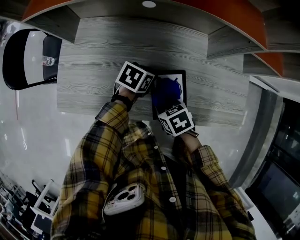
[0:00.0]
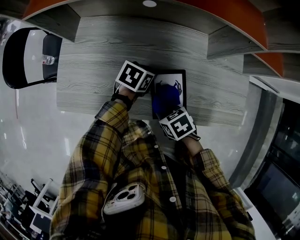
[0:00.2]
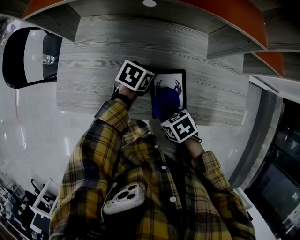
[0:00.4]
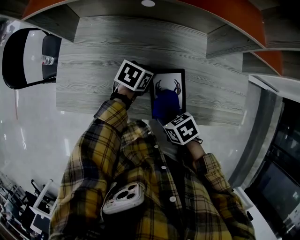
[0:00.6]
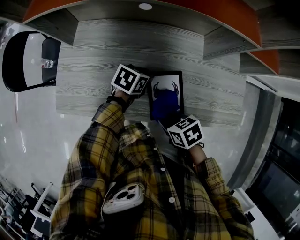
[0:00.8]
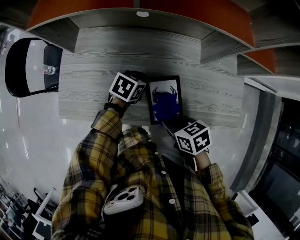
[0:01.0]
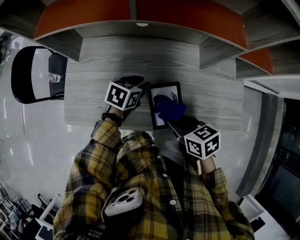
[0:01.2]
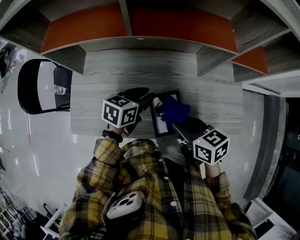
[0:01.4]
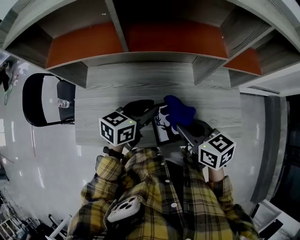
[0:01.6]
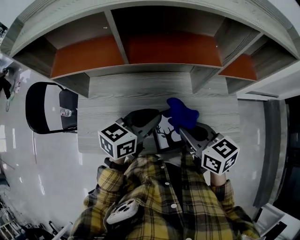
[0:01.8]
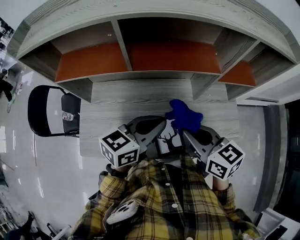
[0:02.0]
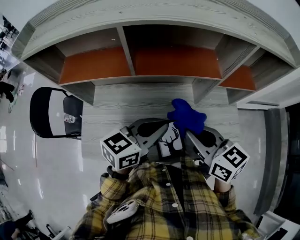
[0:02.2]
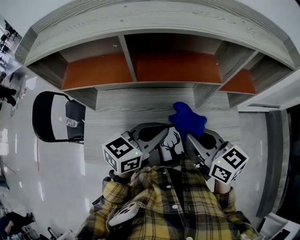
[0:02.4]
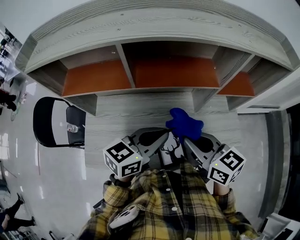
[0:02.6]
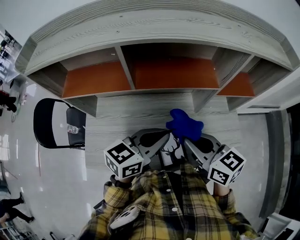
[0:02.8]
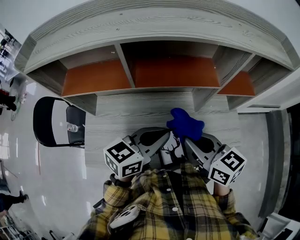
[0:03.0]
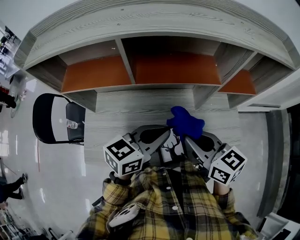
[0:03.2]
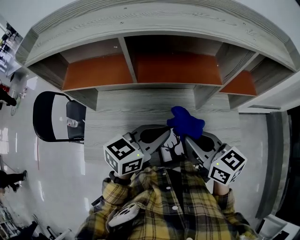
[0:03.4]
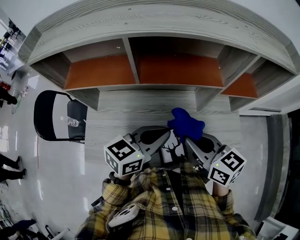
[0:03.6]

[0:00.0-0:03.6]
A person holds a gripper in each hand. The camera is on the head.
0:00.0 to 0:01.8: Both grippers move upward, some 25 cm. The right gripper tips its fingers upward by some 40 degrees. The left gripper tips its fingers upward by roughly 30 degrees.
0:01.8 to 0:03.6: Both grippers travel together upward, approximately 5 cm.

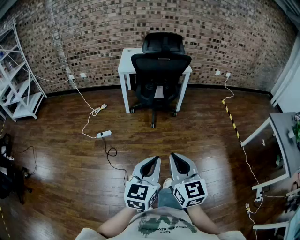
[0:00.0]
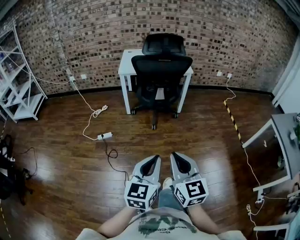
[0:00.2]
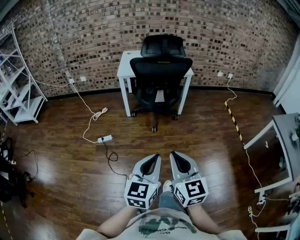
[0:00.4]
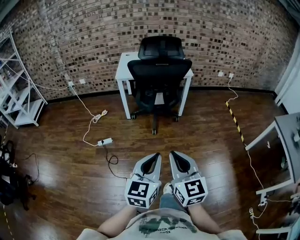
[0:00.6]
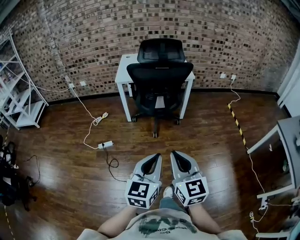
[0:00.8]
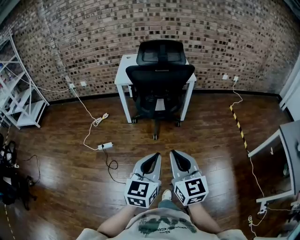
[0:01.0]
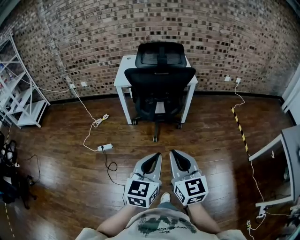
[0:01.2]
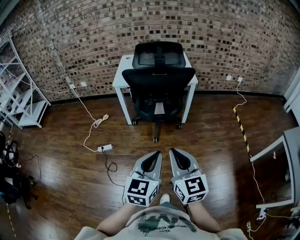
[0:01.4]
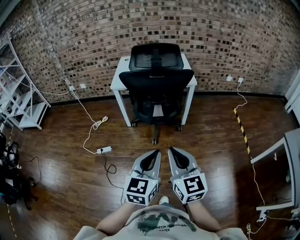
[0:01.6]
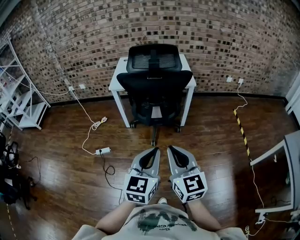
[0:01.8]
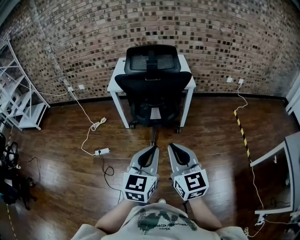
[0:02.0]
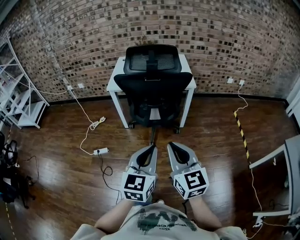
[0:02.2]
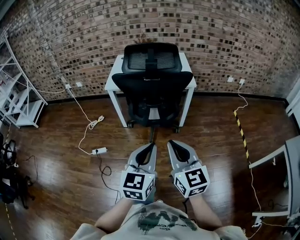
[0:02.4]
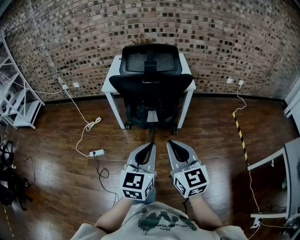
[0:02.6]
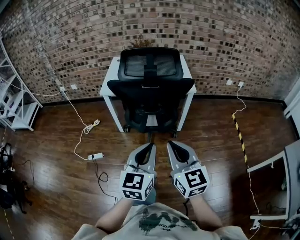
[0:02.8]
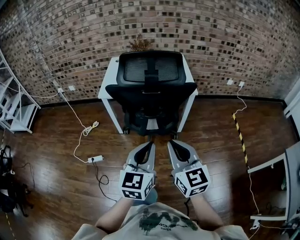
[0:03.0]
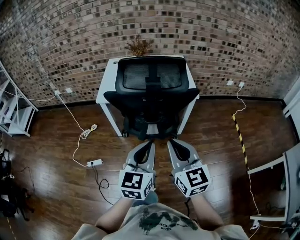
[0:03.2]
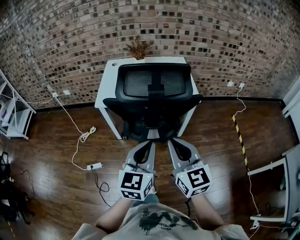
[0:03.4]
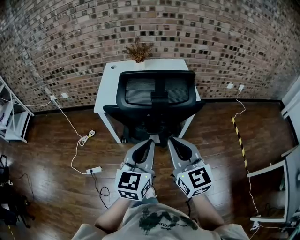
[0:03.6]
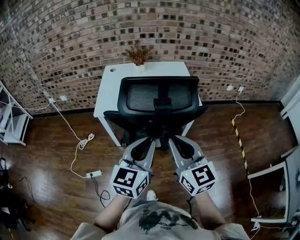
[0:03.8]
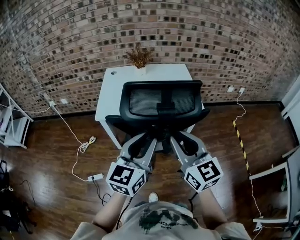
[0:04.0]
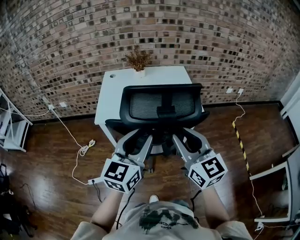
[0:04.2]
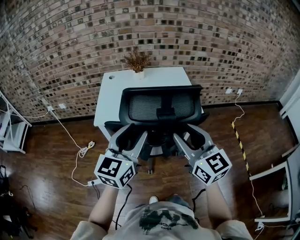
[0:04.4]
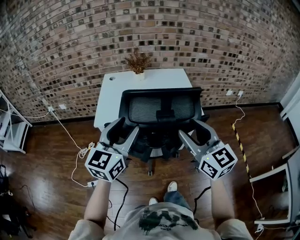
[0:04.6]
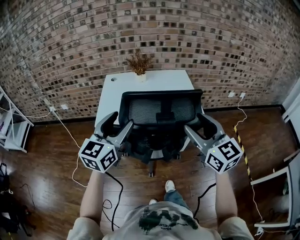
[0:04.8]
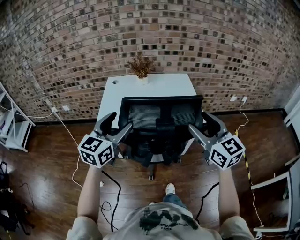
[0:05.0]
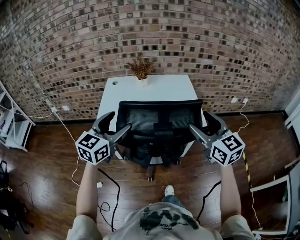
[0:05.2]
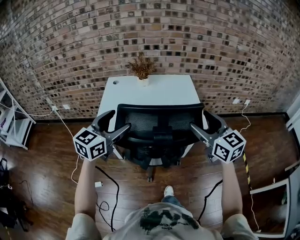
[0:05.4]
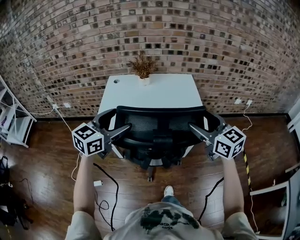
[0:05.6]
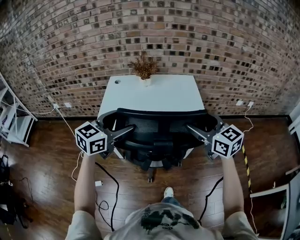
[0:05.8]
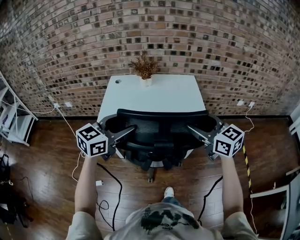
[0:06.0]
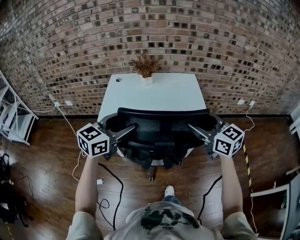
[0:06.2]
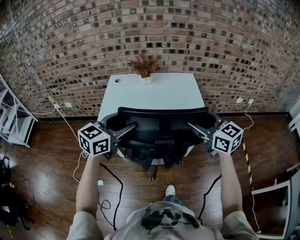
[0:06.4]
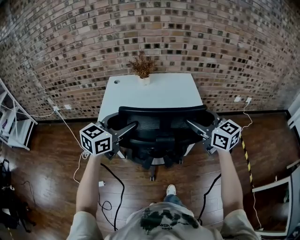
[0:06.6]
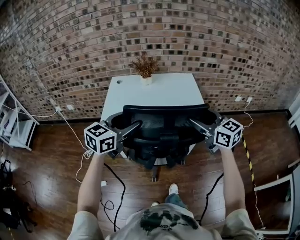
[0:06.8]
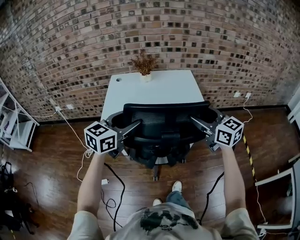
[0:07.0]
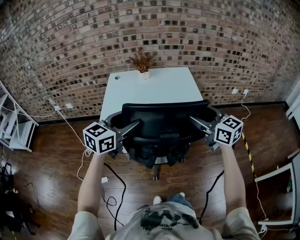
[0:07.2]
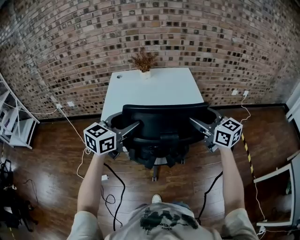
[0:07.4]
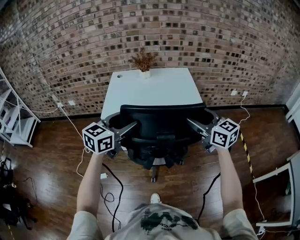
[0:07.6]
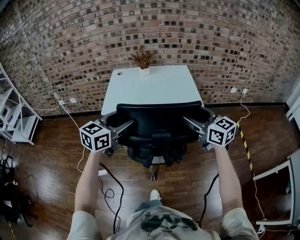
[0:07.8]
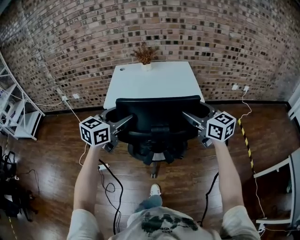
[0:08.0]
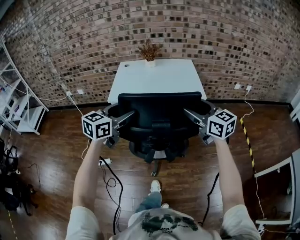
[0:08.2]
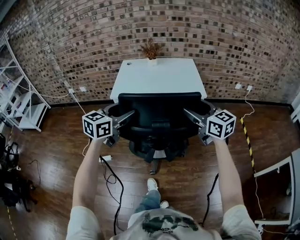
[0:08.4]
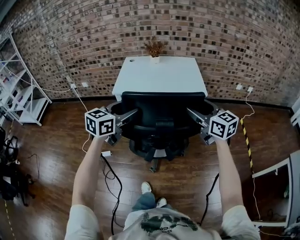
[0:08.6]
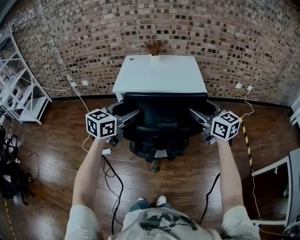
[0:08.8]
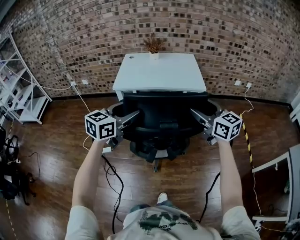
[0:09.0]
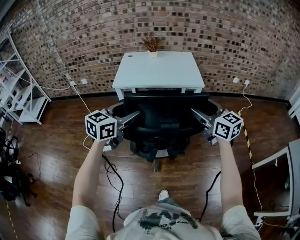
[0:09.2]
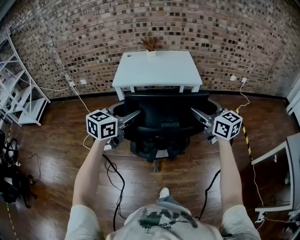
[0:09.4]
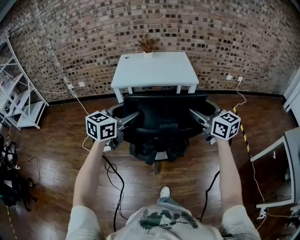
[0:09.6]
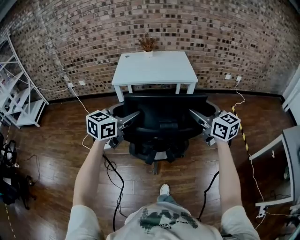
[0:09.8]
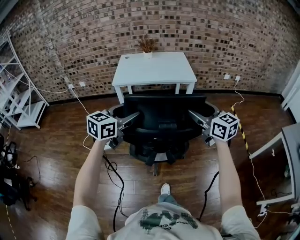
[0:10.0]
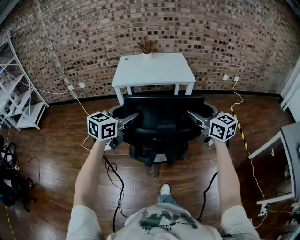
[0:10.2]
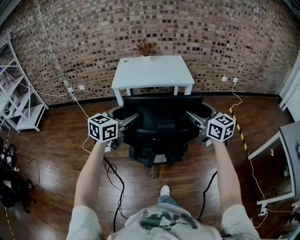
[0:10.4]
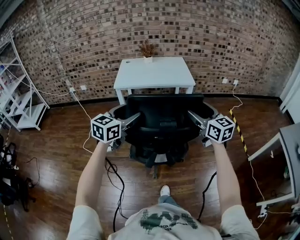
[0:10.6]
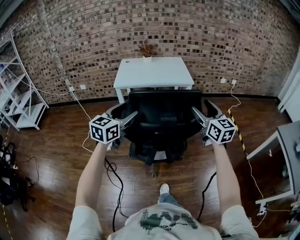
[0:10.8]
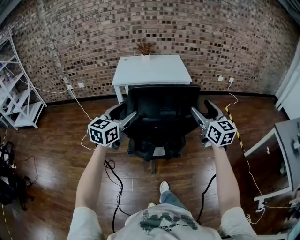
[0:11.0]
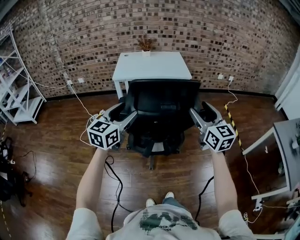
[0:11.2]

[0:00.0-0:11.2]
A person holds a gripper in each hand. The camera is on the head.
0:00.0 to 0:01.6: The grippers both shift forward by approximately 25 cm.
0:01.6 to 0:03.2: The grippers both shift forward by approximately 25 cm.
0:03.2 to 0:04.8: The right gripper goes some 20 cm forward, and opens, while the left gripper travels forward and to the left by some 25 cm, and opens its fingers.
0:04.8 to 0:06.4: The left gripper goes roughly 5 cm forward. The right gripper shifts some 10 cm forward.
0:06.4 to 0:08.0: Both grippers move backward, roughly 20 cm.
0:08.0 to 0:09.6: The two grippers go roughly 25 cm backward.
0:09.6 to 0:11.2: The two grippers go roughly 15 cm backward.

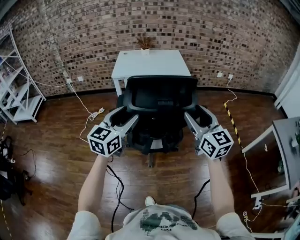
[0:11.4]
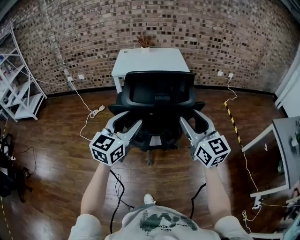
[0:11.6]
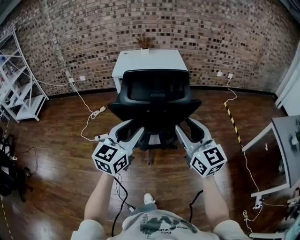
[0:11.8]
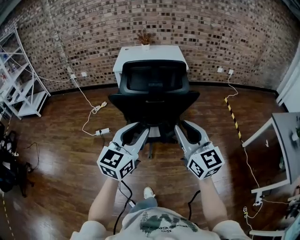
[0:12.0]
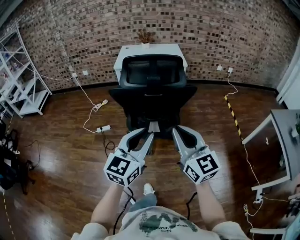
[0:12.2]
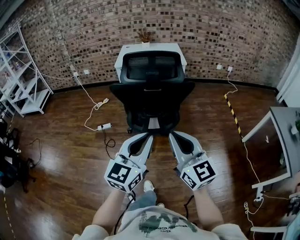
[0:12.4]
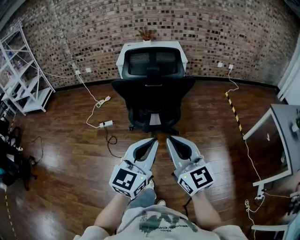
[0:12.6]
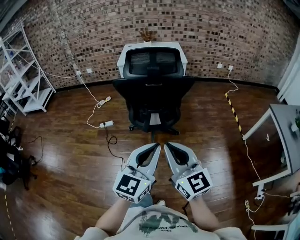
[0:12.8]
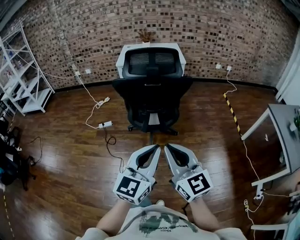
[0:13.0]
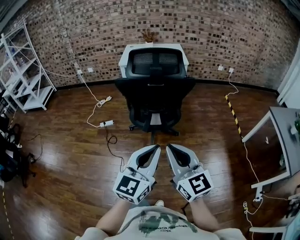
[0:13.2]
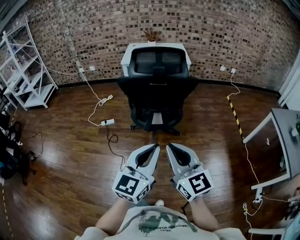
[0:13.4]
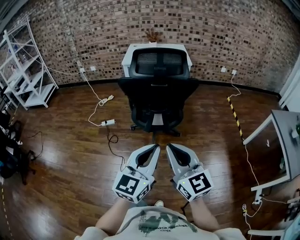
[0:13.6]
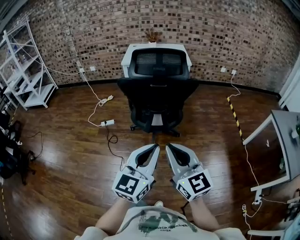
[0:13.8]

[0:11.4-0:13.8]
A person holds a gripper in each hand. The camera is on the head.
0:11.4 to 0:12.6: The left gripper goes approximately 35 cm backward and to the right, and closes up; the right gripper moves backward, roughly 30 cm, and closes its fingers.
0:12.6 to 0:13.8: The grippers stay close to where they were, moving slightly.

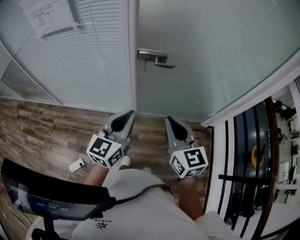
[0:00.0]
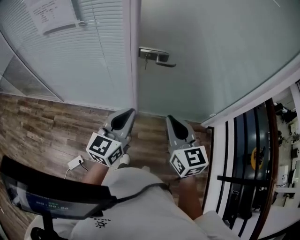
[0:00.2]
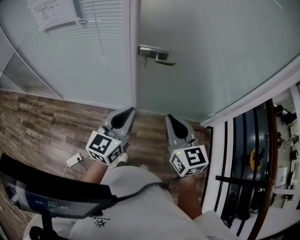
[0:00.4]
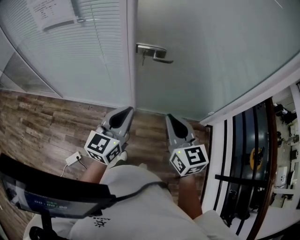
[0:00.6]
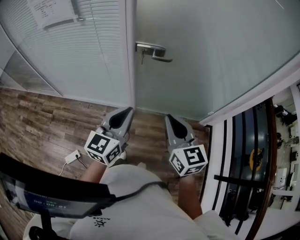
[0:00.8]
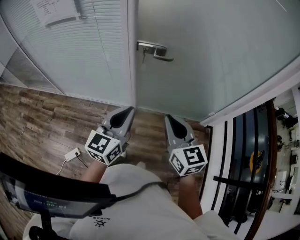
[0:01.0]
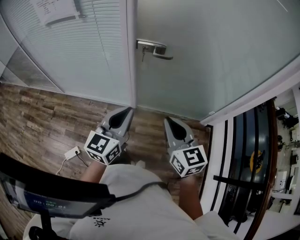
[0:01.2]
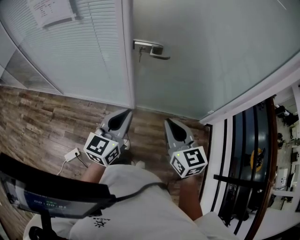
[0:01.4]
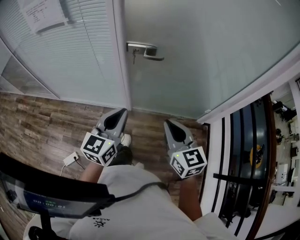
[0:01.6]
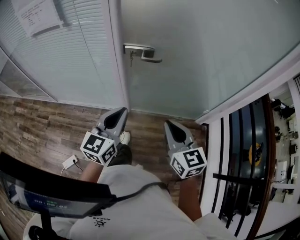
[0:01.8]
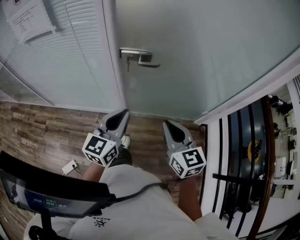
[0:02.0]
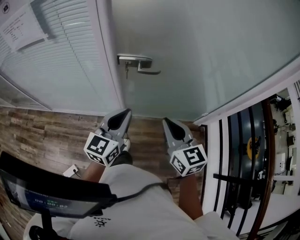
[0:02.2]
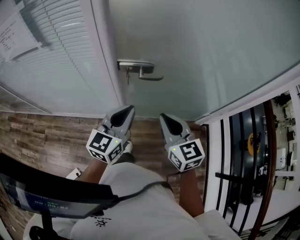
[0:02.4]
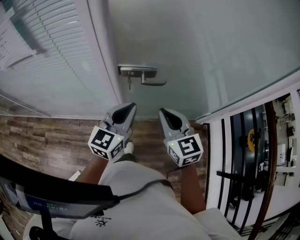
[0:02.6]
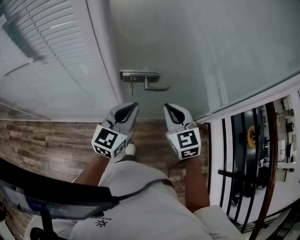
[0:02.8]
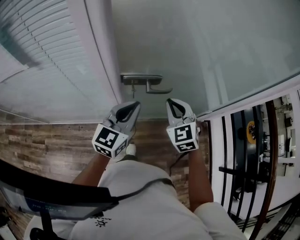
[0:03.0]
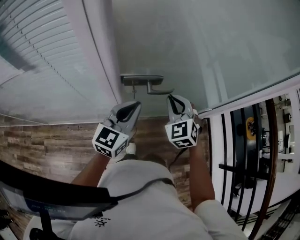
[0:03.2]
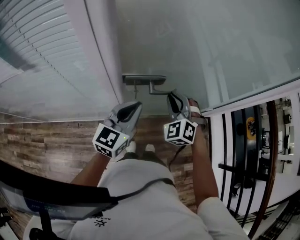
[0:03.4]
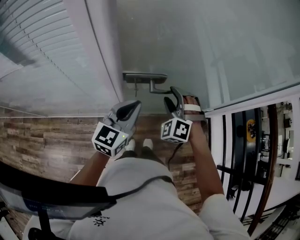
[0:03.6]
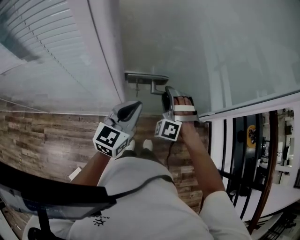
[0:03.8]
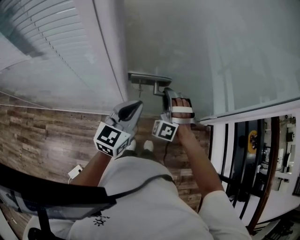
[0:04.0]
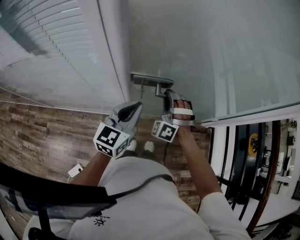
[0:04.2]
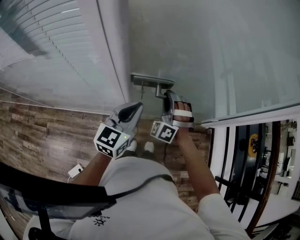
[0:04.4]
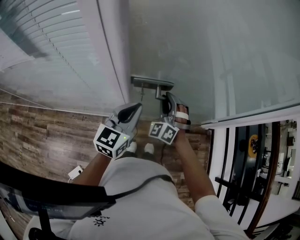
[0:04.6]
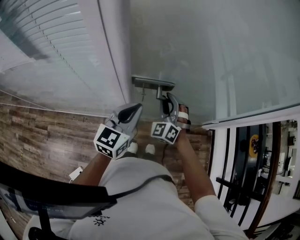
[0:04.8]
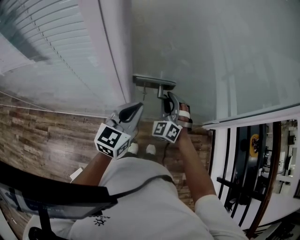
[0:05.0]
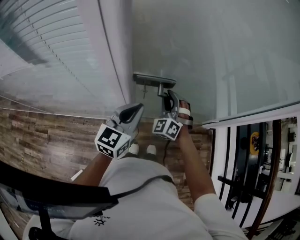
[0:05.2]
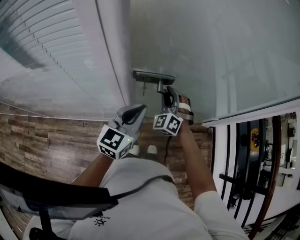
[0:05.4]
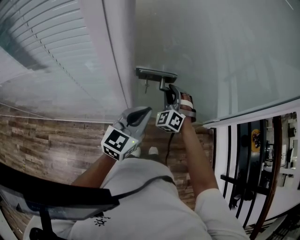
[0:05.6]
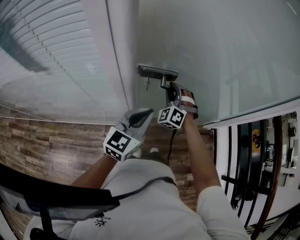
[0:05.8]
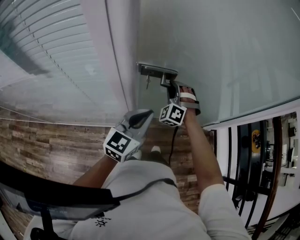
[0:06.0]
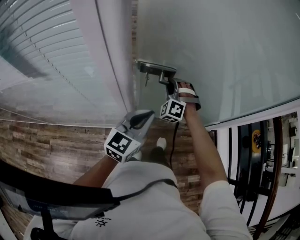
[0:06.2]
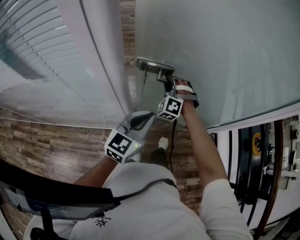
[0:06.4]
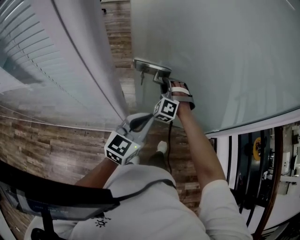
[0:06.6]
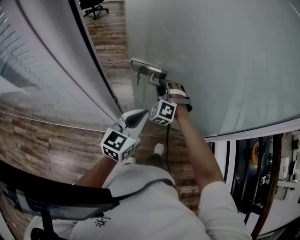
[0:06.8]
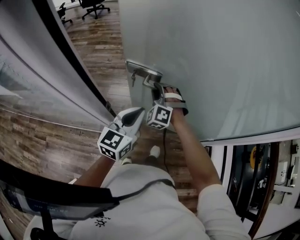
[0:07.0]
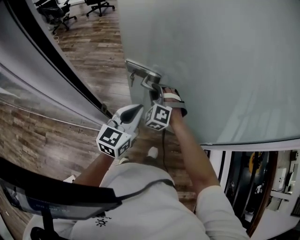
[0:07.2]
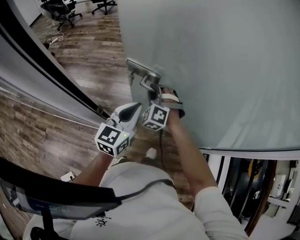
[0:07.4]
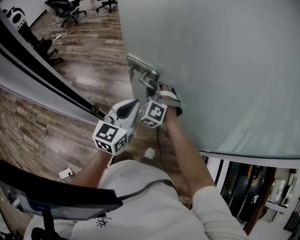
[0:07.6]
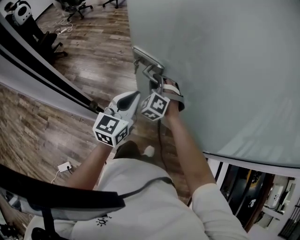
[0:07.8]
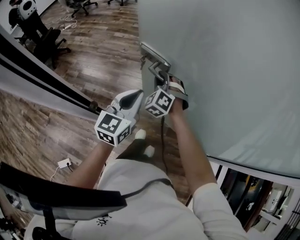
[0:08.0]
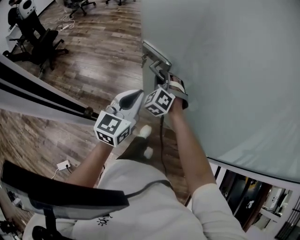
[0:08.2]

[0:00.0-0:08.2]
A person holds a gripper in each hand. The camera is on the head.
0:00.0 to 0:01.6: The right gripper shifts some 5 cm to the right. Meanwhile the left gripper changes place by about 5 cm.
0:01.6 to 0:03.2: Both grippers travel together forward, about 25 cm. The right gripper turns by approximately 40 degrees.
0:03.2 to 0:05.0: The right gripper travels downward and to the left by approximately 10 cm, turns by roughly 20 degrees, and opens and closes again.
0:05.0 to 0:06.6: The right gripper goes about 15 cm forward, and swivels approximately 20 degrees; the left gripper goes roughly 5 cm to the right.
0:06.6 to 0:08.2: The grippers both shift forward by approximately 15 cm. The left gripper swivels approximately 20 degrees.
